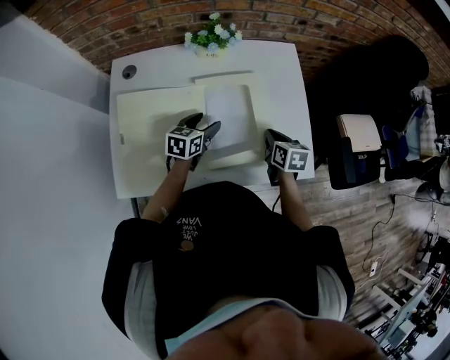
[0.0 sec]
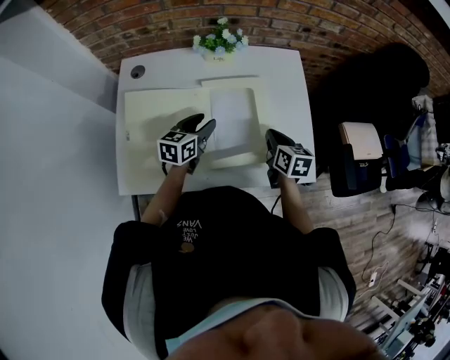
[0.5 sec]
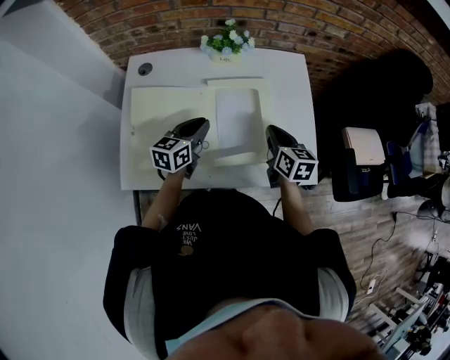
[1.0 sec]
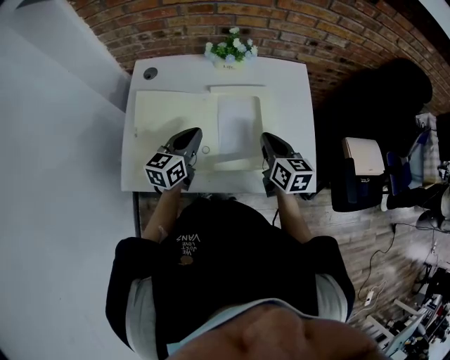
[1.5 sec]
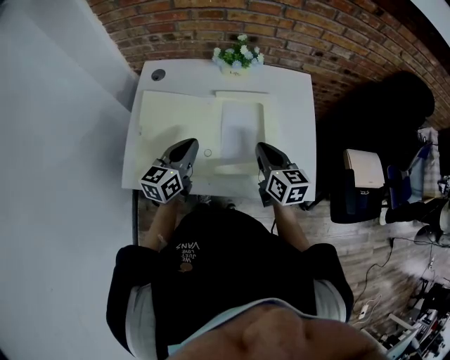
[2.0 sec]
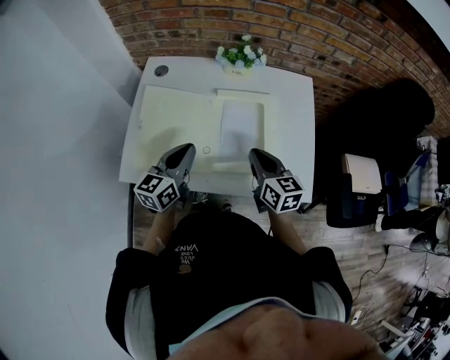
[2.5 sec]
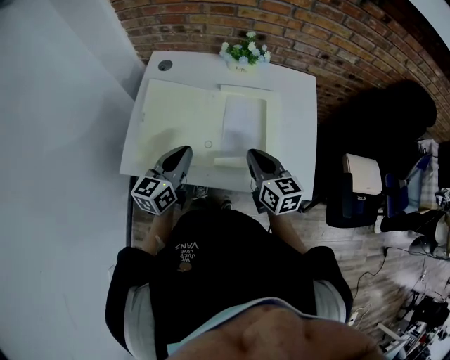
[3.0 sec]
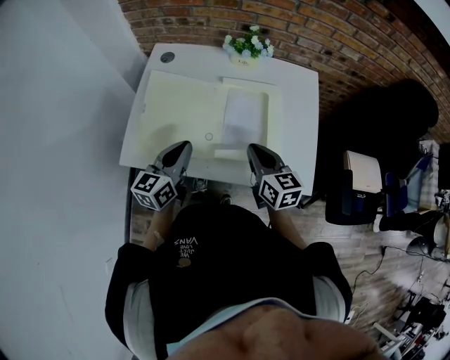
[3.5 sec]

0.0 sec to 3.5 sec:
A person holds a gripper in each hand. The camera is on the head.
0.0 sec to 2.0 sec: The right gripper goes about 15 cm upward and to the left, and rotates some 30 degrees. The left gripper heads upward, backward and to the left, covering approximately 20 cm, changes its angle by roughly 30 degrees, and closes.
2.0 sec to 3.5 sec: The right gripper ends up approximately 5 cm from where it was; the left gripper shifts roughly 5 cm backward.

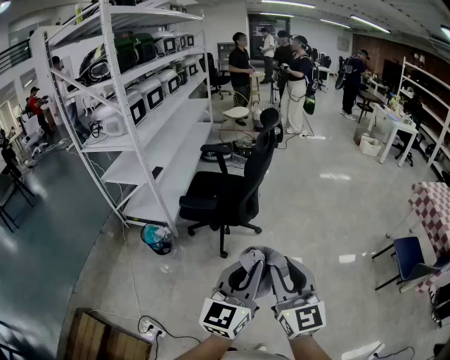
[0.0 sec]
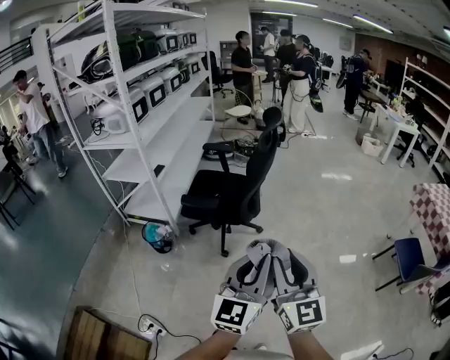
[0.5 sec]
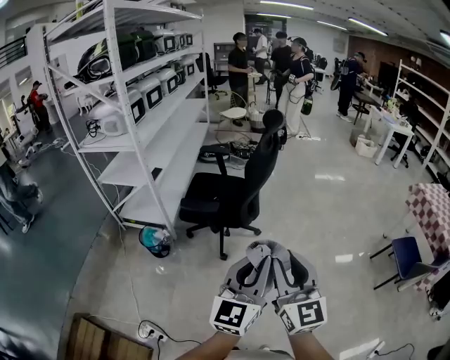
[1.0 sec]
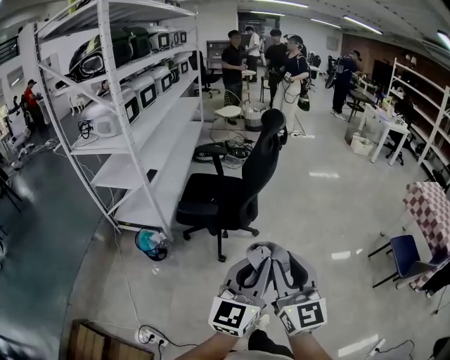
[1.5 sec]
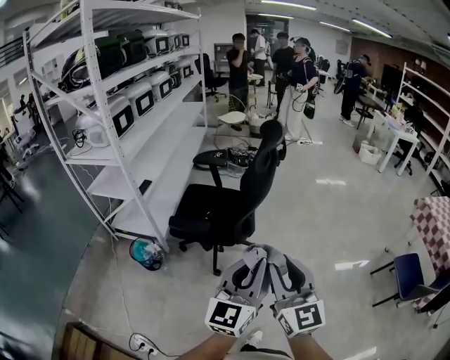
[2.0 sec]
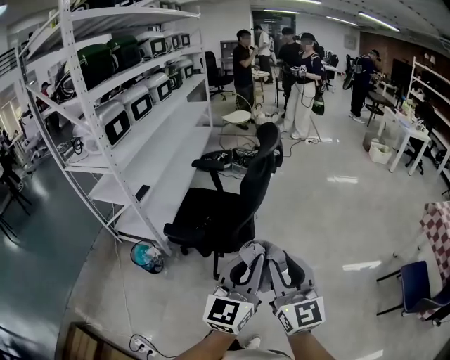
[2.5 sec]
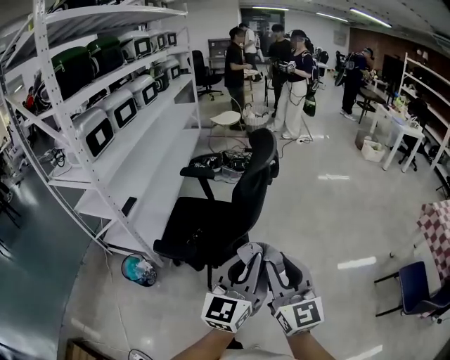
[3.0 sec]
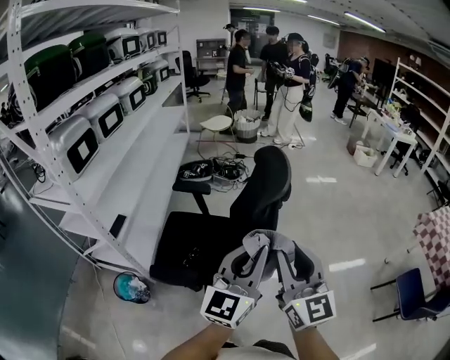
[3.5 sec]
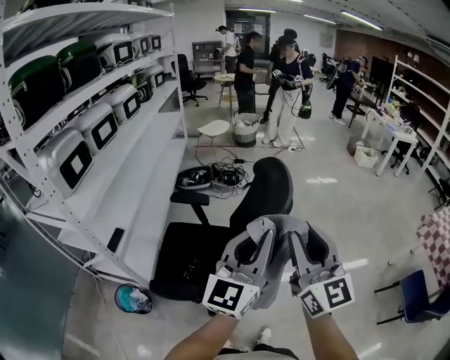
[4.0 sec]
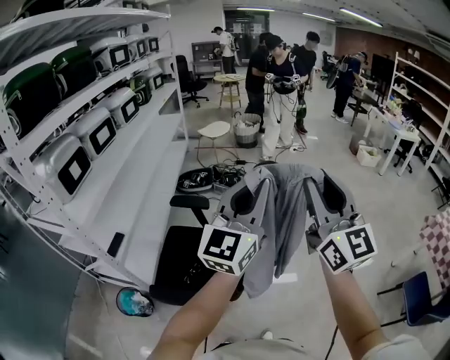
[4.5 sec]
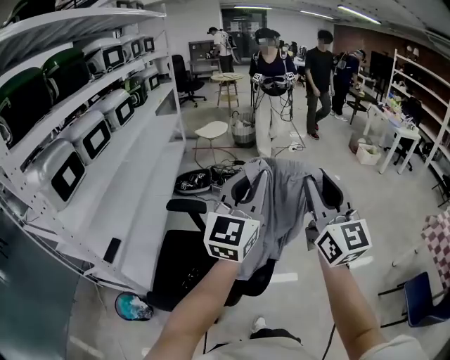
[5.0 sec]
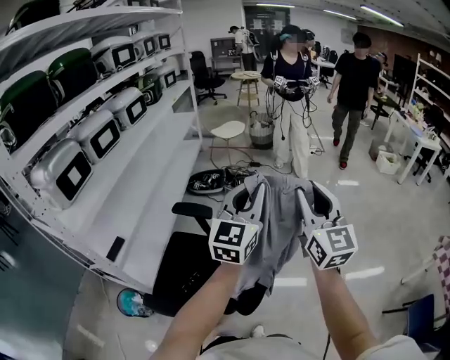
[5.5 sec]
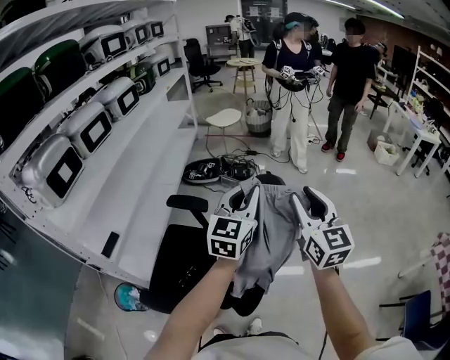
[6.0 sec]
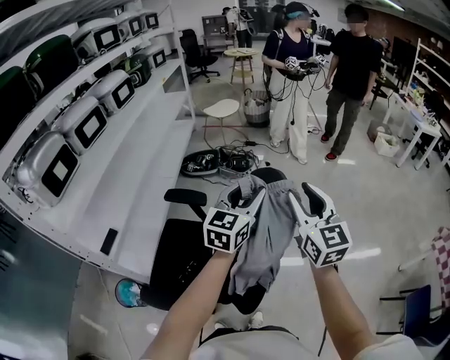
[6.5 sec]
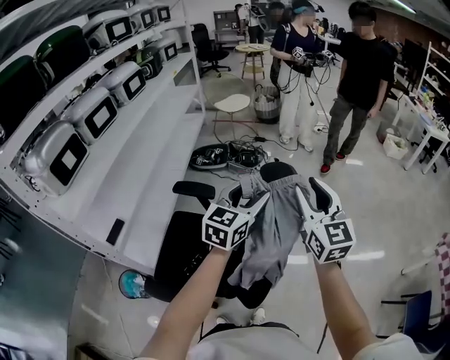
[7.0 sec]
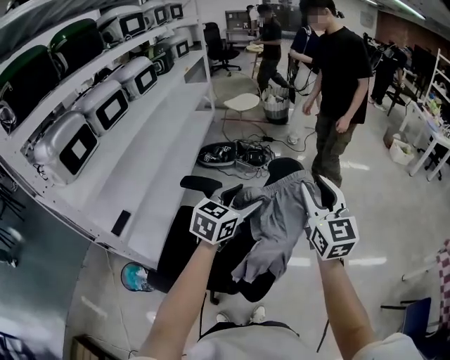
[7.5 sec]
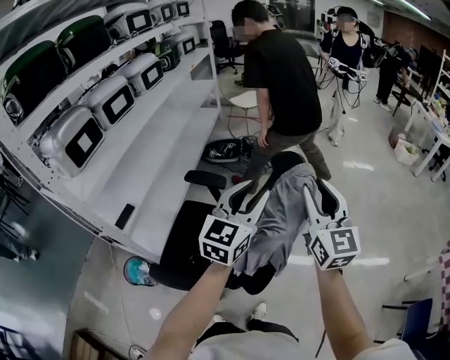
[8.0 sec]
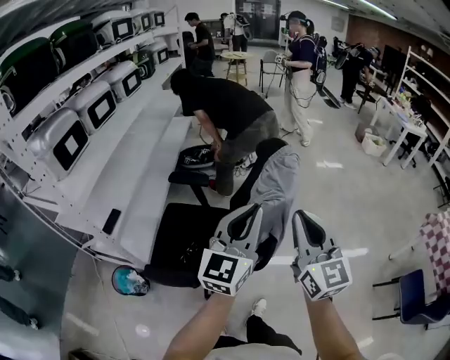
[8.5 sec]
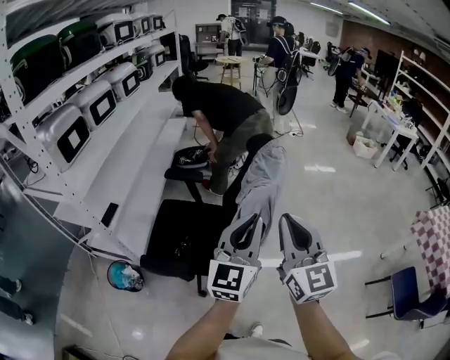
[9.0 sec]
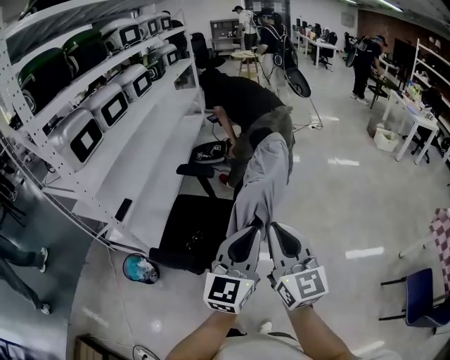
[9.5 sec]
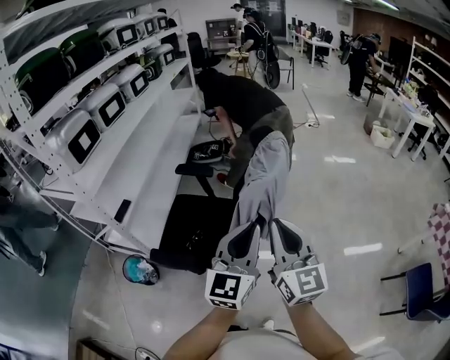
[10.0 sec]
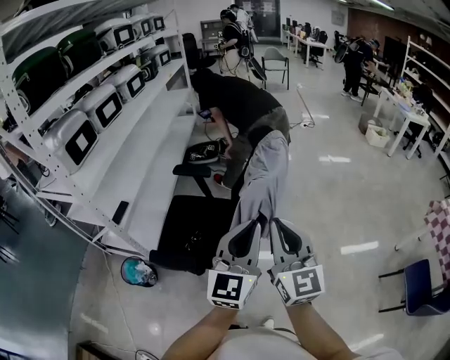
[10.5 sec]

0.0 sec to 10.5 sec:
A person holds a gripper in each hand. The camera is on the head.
0.0 sec to 2.0 sec: Both grippers travel together forward, approximately 15 cm.
2.0 sec to 4.0 sec: The two grippers travel together, forward, roughly 40 cm.
4.0 sec to 6.5 sec: Both grippers travel together forward, about 30 cm. The left gripper changes its angle by about 20 degrees, and opens its fingers.
6.5 sec to 8.5 sec: Both grippers move backward, some 25 cm. The left gripper closes. The right gripper closes up.
8.5 sec to 10.5 sec: The two grippers go some 10 cm backward.

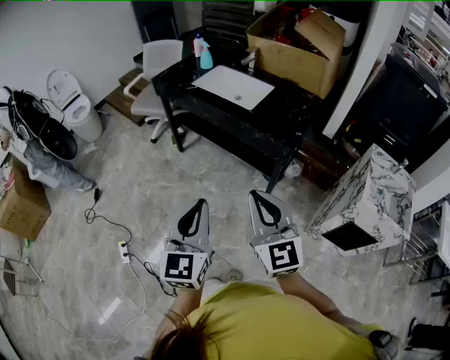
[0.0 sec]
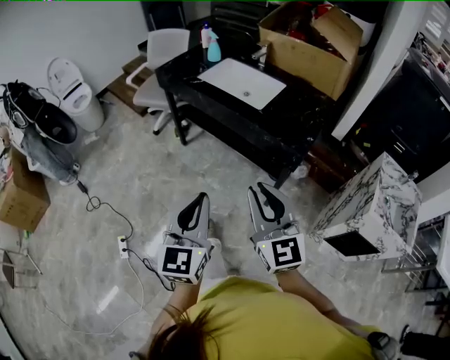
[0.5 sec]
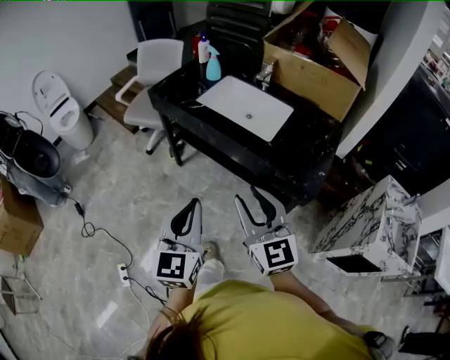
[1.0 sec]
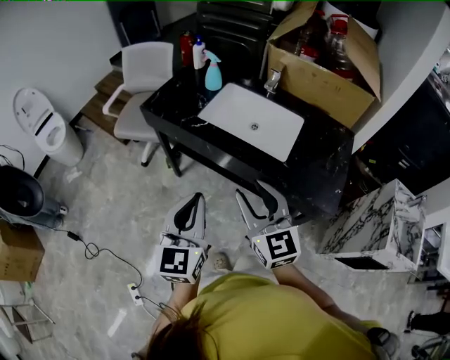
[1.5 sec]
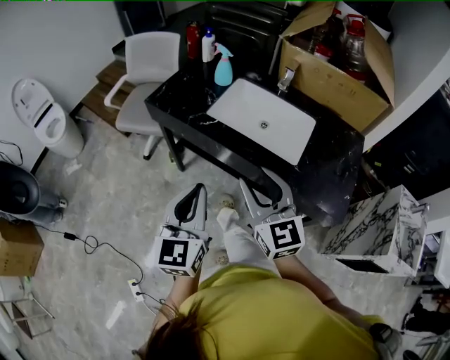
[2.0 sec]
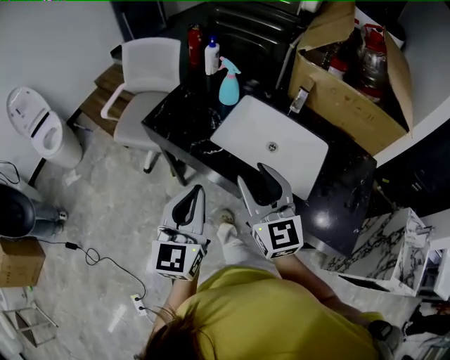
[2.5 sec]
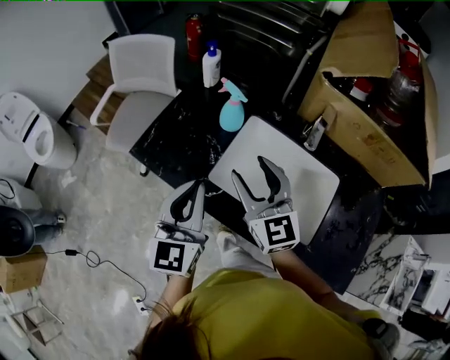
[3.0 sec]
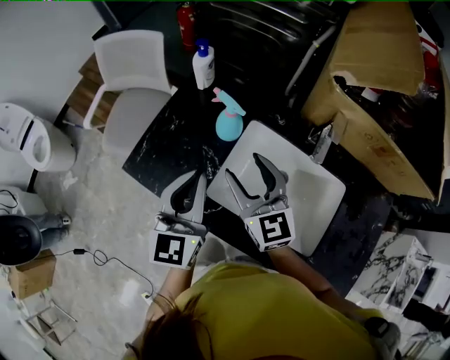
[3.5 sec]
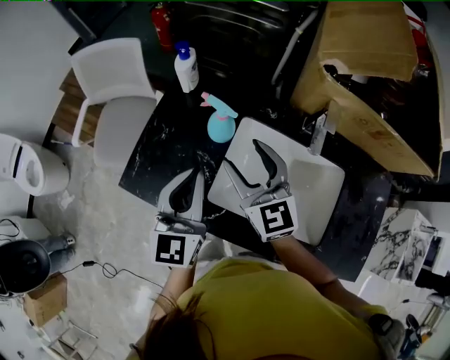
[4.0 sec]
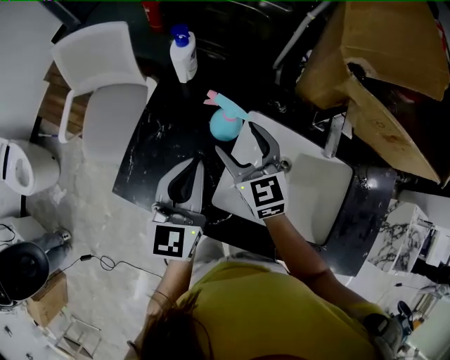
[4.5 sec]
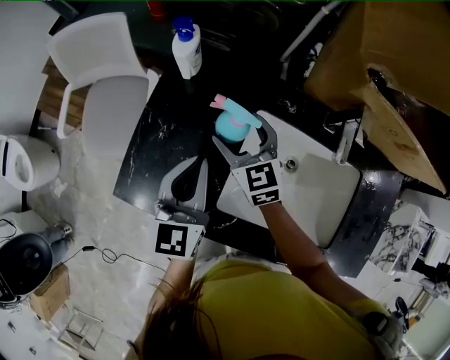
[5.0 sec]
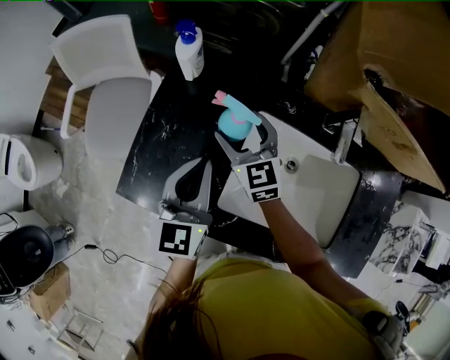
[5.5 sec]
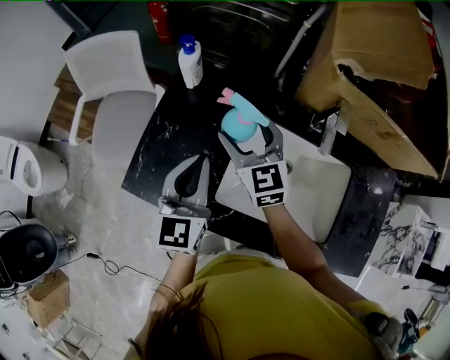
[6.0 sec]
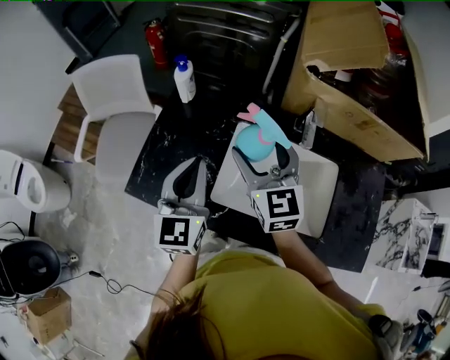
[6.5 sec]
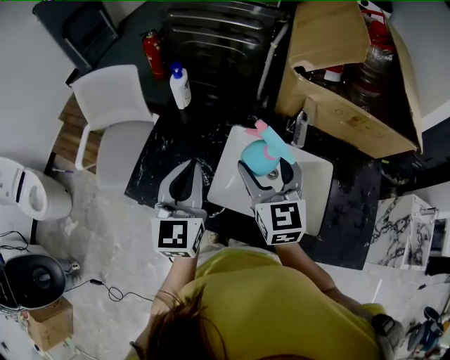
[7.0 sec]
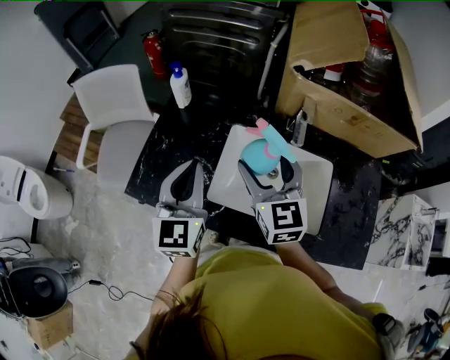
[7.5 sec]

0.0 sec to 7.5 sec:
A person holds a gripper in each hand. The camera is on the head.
0.0 sec to 2.0 sec: The two grippers travel together, forward, some 50 cm. The right gripper opens.
2.0 sec to 4.0 sec: The two grippers travel together, forward, some 50 cm.
4.0 sec to 5.5 sec: The right gripper moves downward and forward, about 15 cm; the left gripper moves downward and forward, some 10 cm.
5.5 sec to 7.5 sec: The right gripper is displaced upward, backward and to the right by about 25 cm; the left gripper goes approximately 15 cm upward and backward.

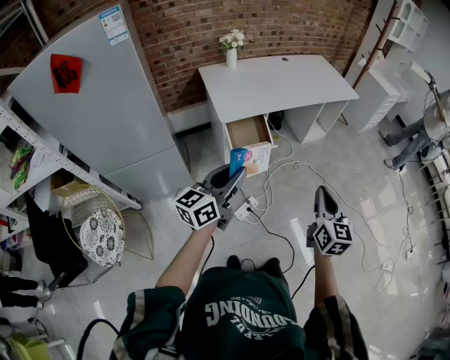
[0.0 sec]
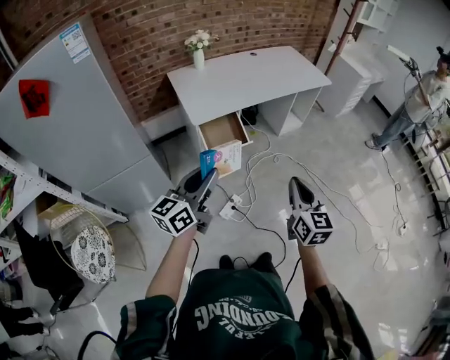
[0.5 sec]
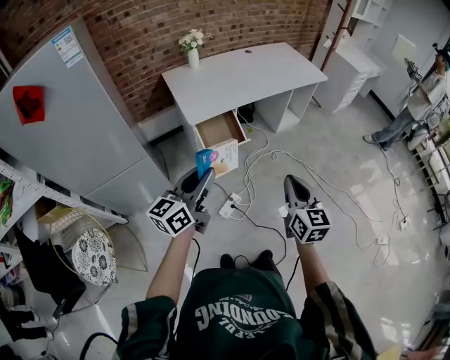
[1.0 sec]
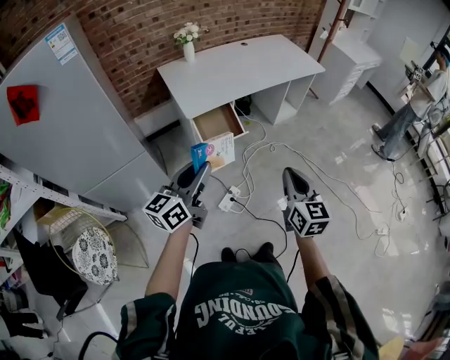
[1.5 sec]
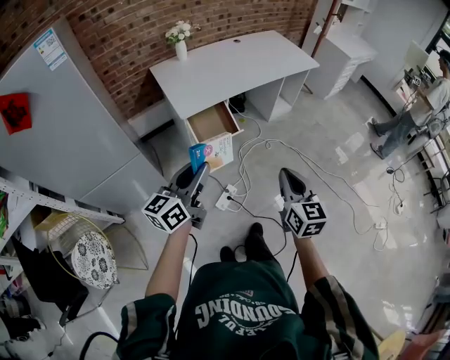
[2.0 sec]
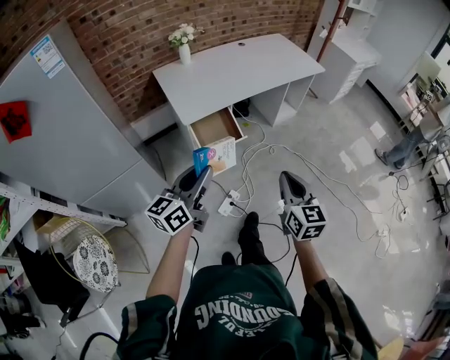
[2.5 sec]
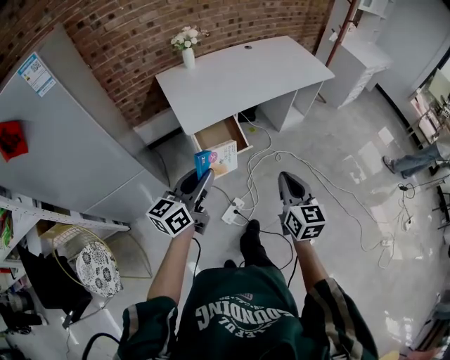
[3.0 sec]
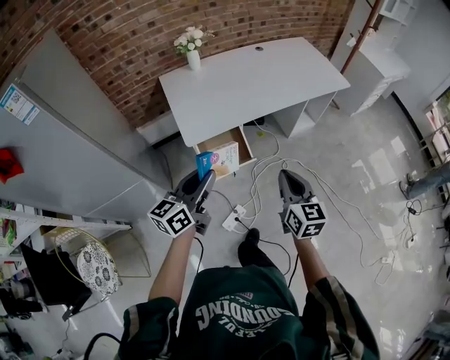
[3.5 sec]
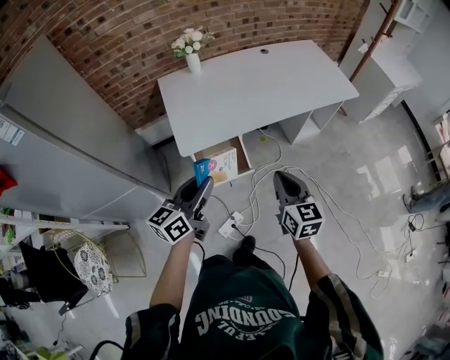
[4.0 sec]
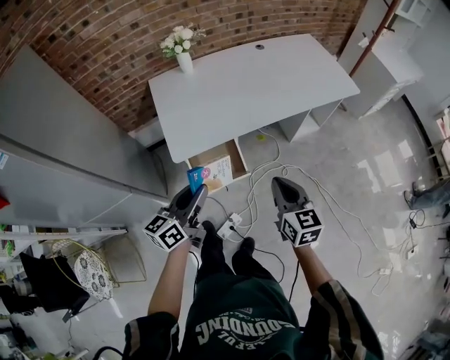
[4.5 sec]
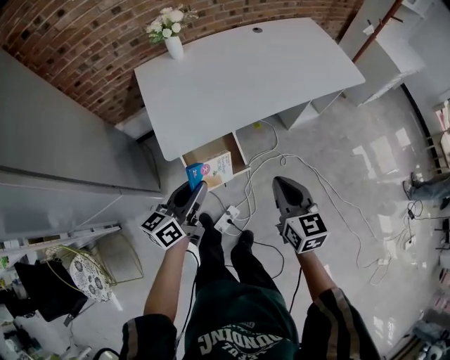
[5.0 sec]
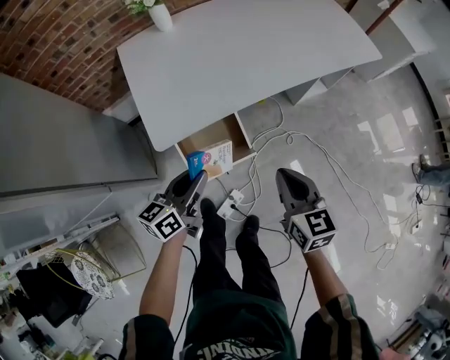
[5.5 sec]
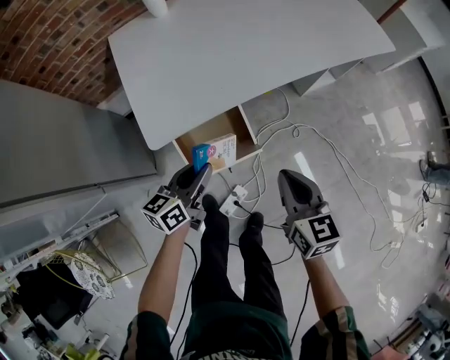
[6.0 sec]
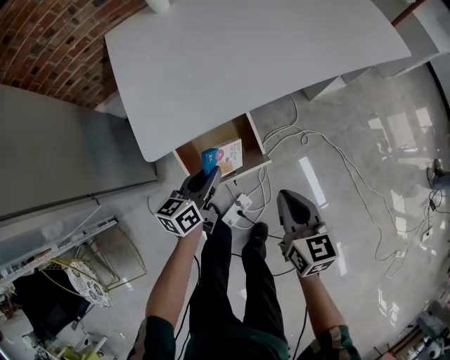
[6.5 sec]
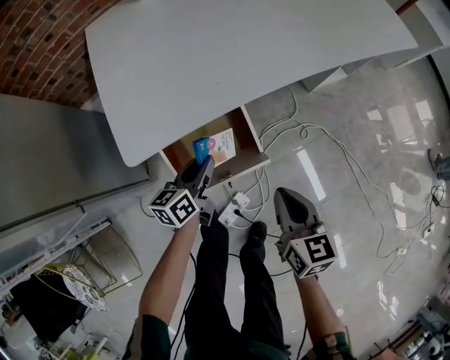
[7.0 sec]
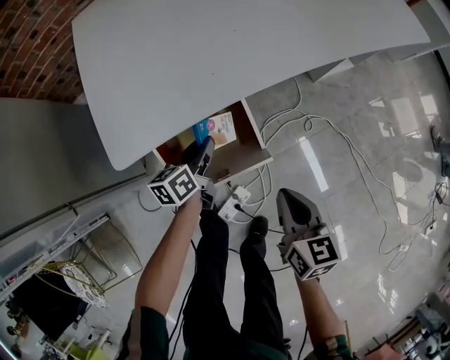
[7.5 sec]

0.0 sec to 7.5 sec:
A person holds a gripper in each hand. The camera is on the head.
0.0 sec to 2.0 sec: There are only small adjustments of the grippers.
2.0 sec to 4.0 sec: The two grippers go some 30 cm forward.
4.0 sec to 5.5 sec: The left gripper goes approximately 20 cm downward and forward. The right gripper is displaced downward by approximately 15 cm.
5.5 sec to 7.5 sec: The right gripper heads downward, covering roughly 20 cm, while the left gripper goes approximately 30 cm downward and forward.
